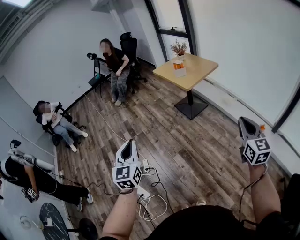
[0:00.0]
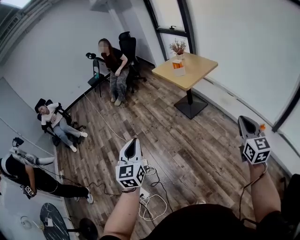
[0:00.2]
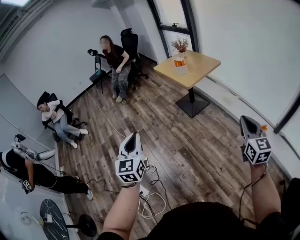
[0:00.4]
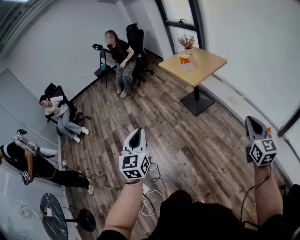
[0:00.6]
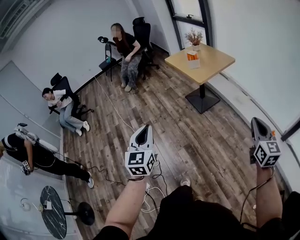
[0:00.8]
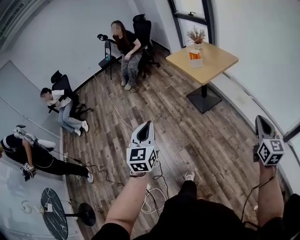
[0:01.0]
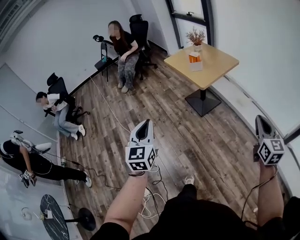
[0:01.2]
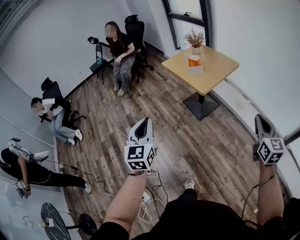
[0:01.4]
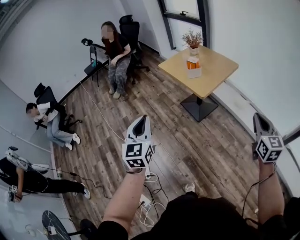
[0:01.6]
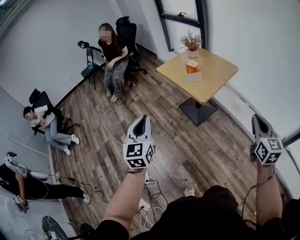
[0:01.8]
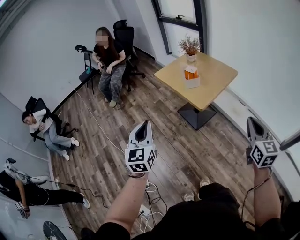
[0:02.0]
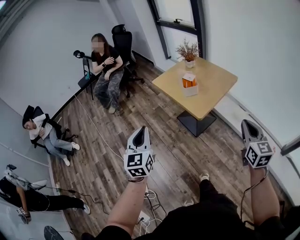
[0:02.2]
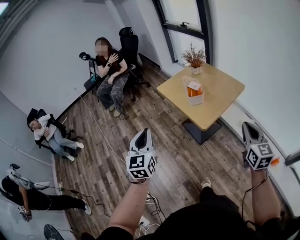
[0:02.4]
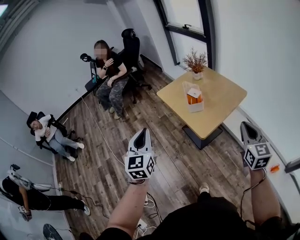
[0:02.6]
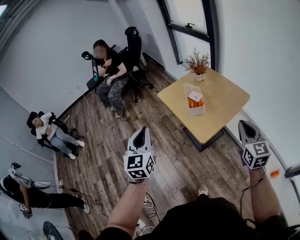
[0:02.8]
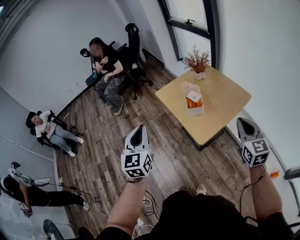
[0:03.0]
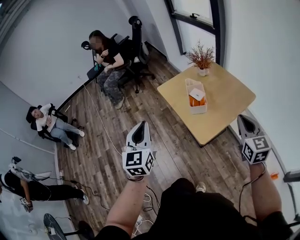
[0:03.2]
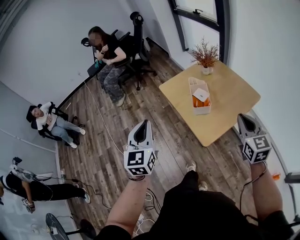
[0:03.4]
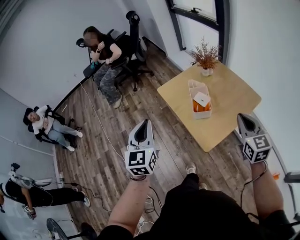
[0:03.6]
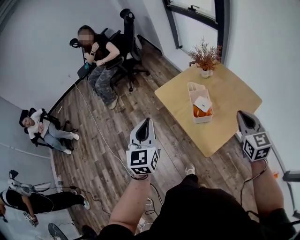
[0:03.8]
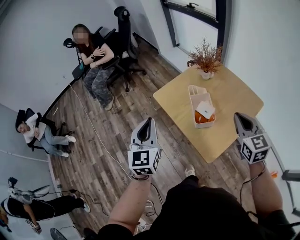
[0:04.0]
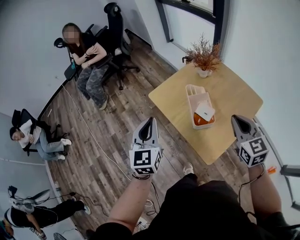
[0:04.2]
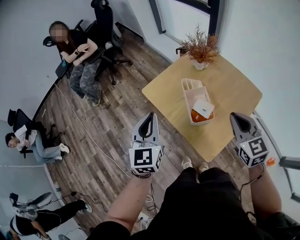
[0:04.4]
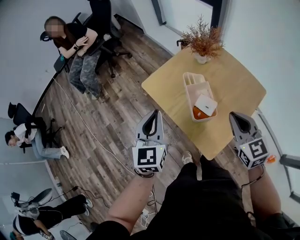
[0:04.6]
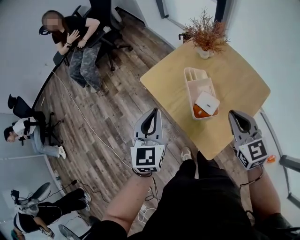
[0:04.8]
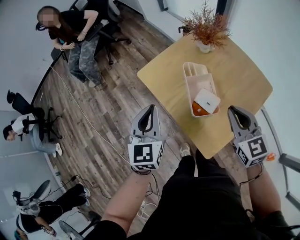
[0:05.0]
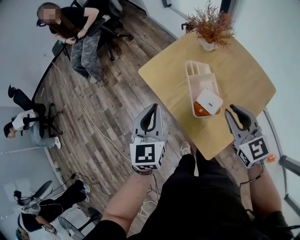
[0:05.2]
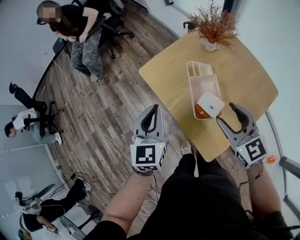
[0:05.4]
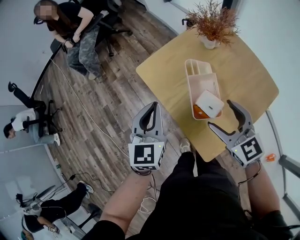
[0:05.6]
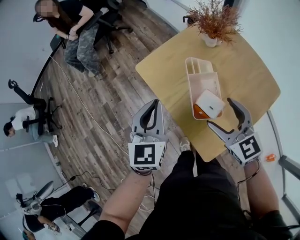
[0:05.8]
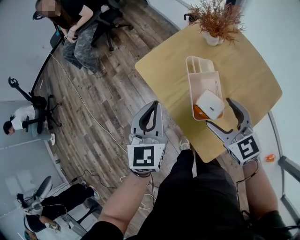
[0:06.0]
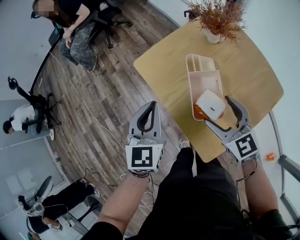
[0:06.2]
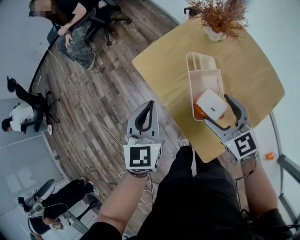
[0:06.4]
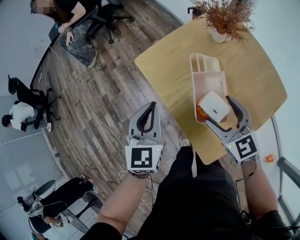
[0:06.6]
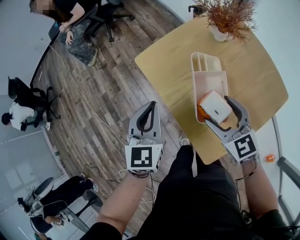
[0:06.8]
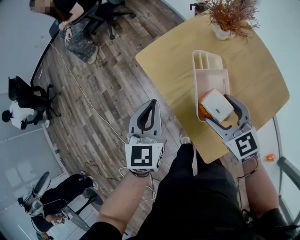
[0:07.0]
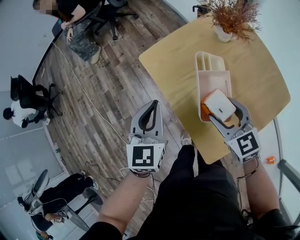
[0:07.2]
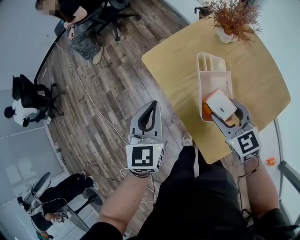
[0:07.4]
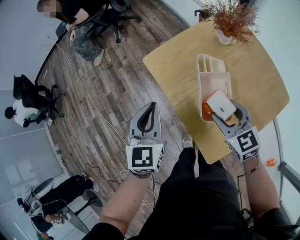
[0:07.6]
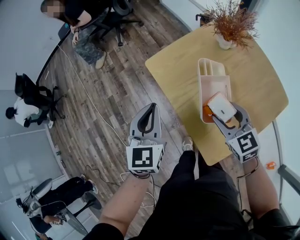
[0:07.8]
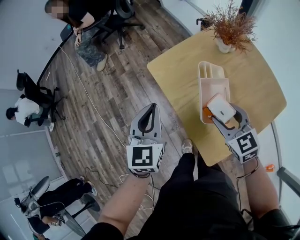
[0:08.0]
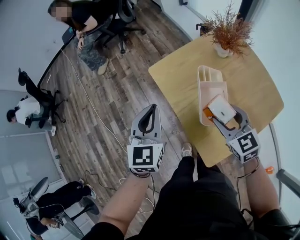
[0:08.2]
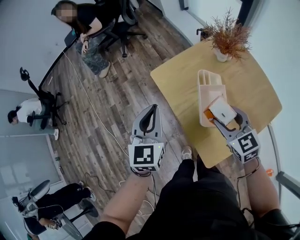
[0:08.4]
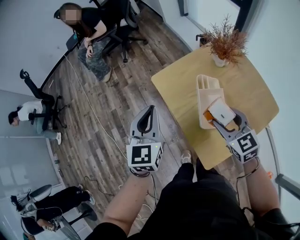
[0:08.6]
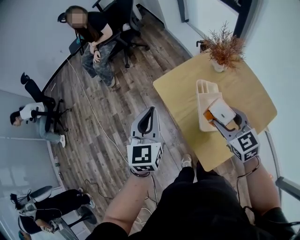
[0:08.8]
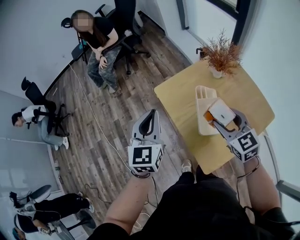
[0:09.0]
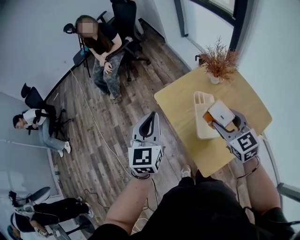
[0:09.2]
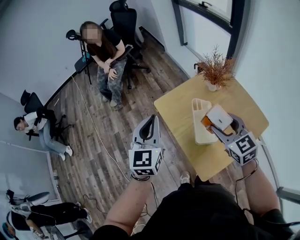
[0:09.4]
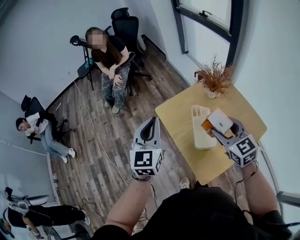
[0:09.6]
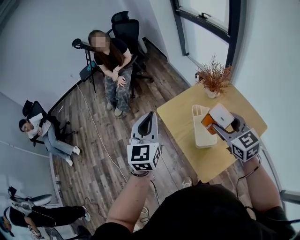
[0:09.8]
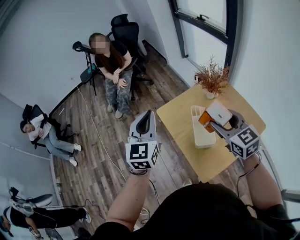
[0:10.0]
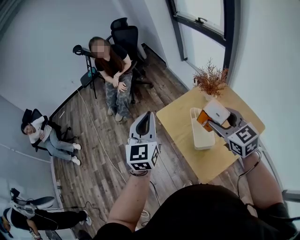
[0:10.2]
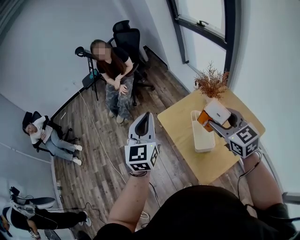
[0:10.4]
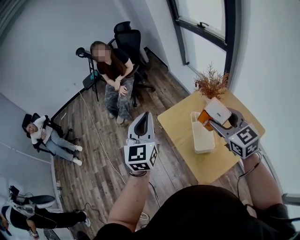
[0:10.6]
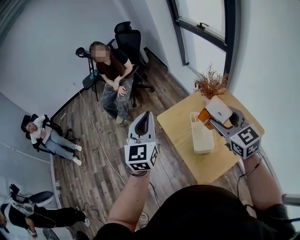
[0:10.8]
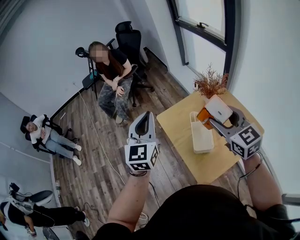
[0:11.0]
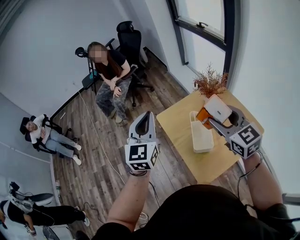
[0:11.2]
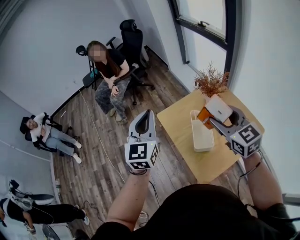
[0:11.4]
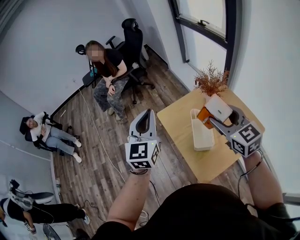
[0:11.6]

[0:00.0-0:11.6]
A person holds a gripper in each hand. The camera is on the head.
0:00.0 to 0:01.4: Both grippers travel together forward, about 30 cm.
0:01.4 to 0:02.8: The two grippers go about 35 cm forward.
0:02.8 to 0:04.4: The grippers both shift forward by some 30 cm.
0:04.4 to 0:05.8: The left gripper travels downward by some 10 cm, while the right gripper moves downward, forward and to the left, about 15 cm, swivels approximately 20 degrees, and opens up.
0:05.8 to 0:07.2: The right gripper is displaced downward by approximately 5 cm.
0:07.2 to 0:08.8: The grippers both shift upward by roughly 10 cm.
0:08.8 to 0:10.2: Both grippers travel together upward, about 15 cm.
0:10.2 to 0:11.6: The grippers stay close to where they were, moving slightly.

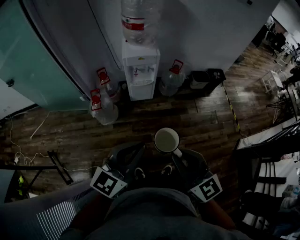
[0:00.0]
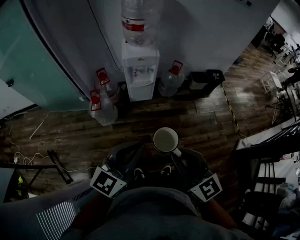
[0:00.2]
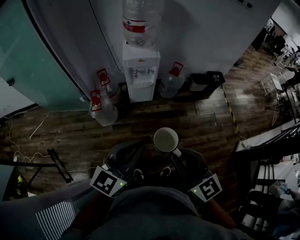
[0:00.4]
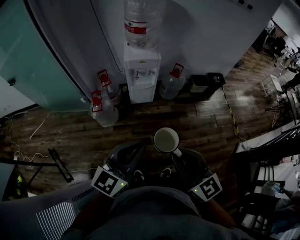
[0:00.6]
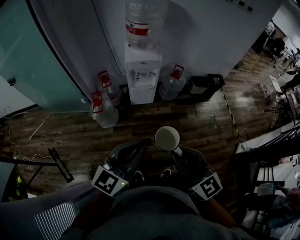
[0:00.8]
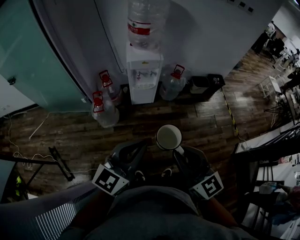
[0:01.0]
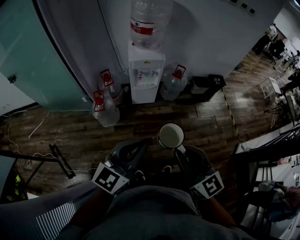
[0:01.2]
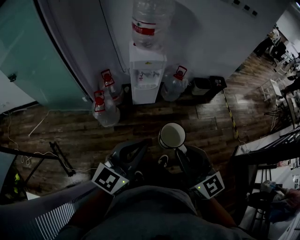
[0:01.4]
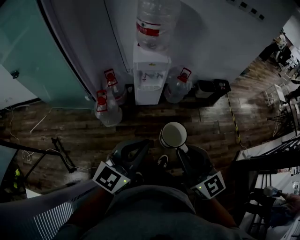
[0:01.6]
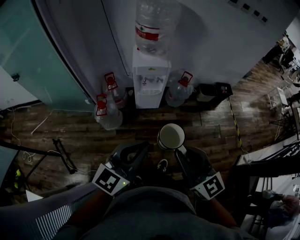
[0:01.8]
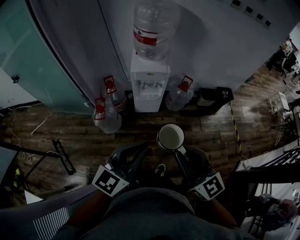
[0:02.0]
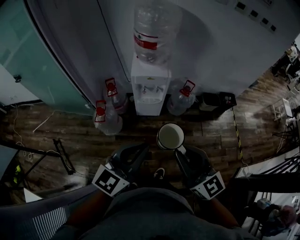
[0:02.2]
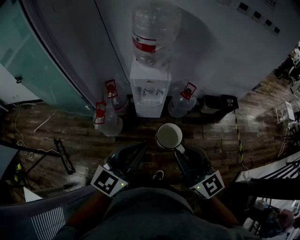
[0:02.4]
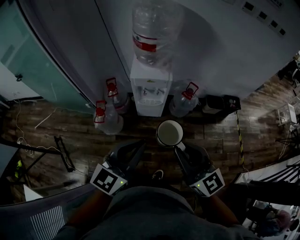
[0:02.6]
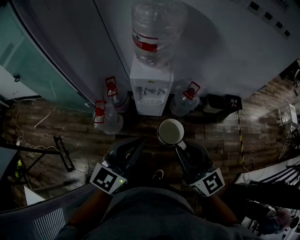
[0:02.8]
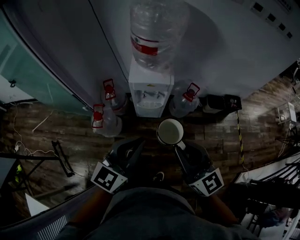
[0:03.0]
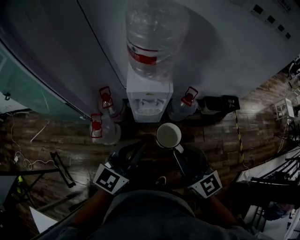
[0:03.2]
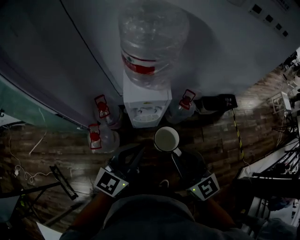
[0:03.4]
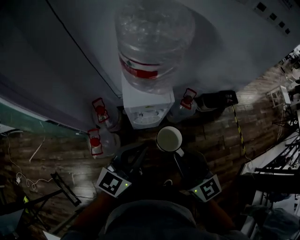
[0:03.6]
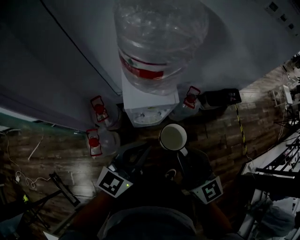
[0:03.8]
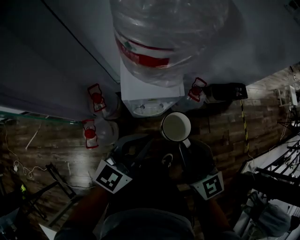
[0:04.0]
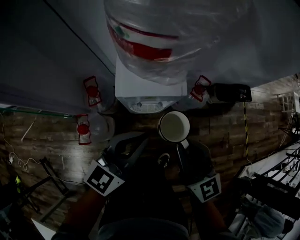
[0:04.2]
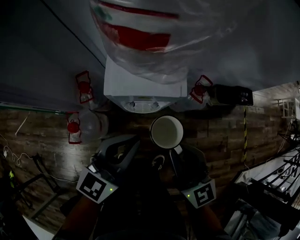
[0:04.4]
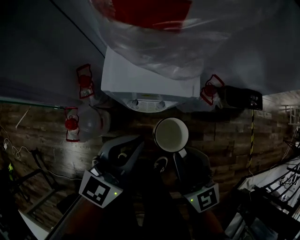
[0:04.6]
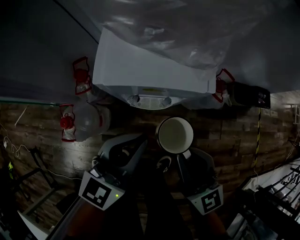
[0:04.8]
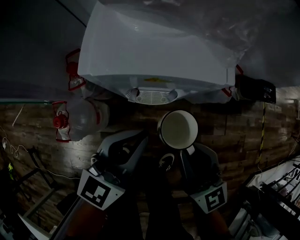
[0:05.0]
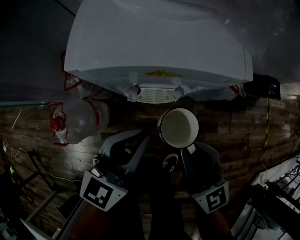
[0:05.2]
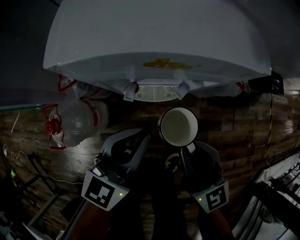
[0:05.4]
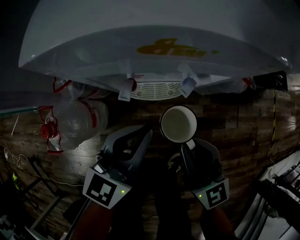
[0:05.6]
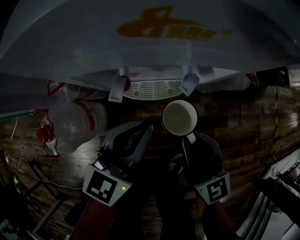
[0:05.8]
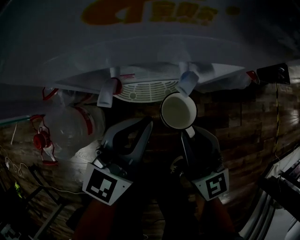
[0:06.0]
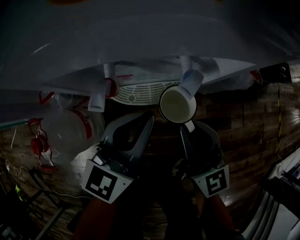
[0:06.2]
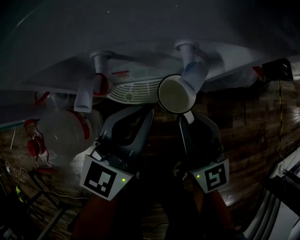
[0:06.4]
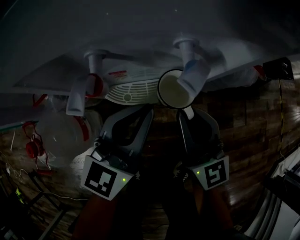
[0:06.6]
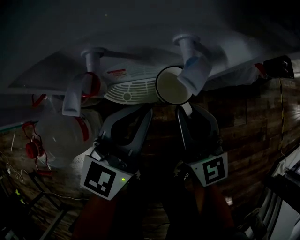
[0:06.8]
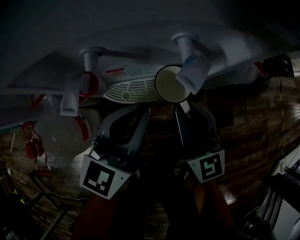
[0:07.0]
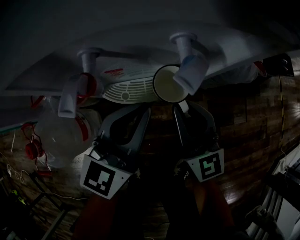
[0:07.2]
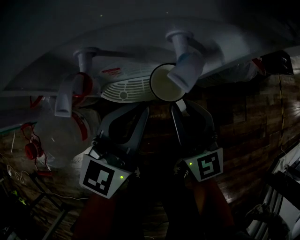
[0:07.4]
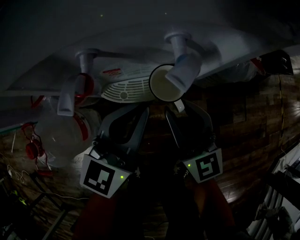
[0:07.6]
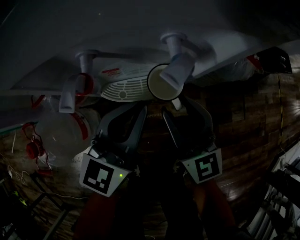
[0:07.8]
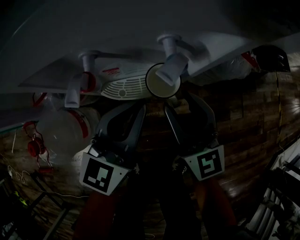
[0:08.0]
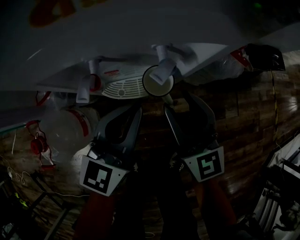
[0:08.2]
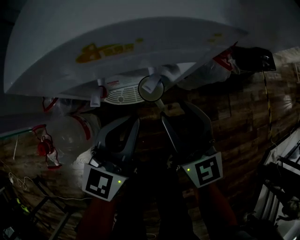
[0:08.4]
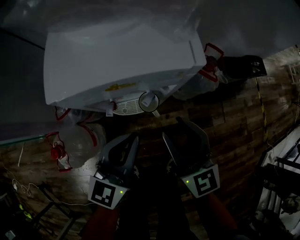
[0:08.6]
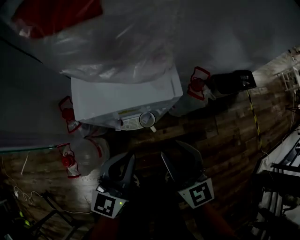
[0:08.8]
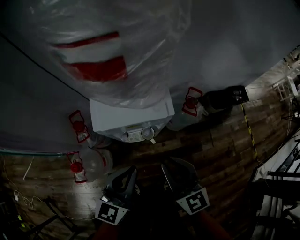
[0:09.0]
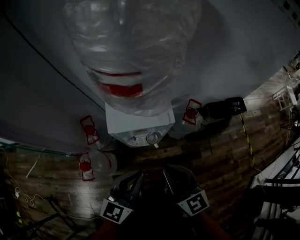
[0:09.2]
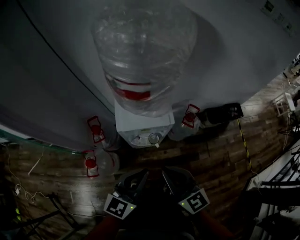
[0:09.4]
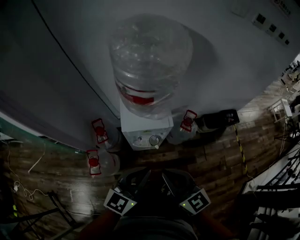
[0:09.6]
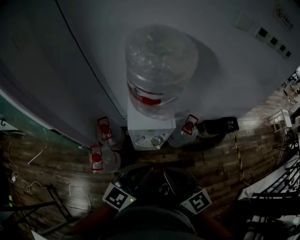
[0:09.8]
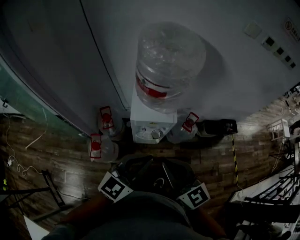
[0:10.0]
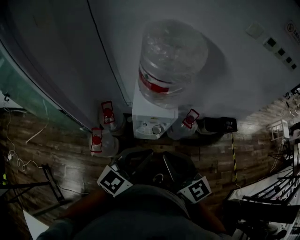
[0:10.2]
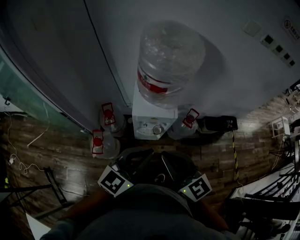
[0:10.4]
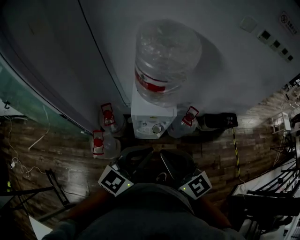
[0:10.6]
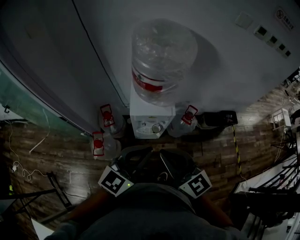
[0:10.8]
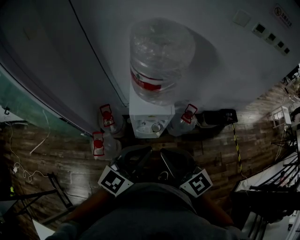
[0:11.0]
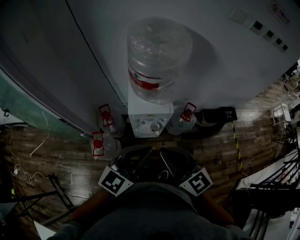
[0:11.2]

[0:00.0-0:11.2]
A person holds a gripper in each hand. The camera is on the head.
0:00.0 to 0:01.6: The left gripper changes place by some 5 cm. The right gripper moves forward, some 5 cm.
0:01.6 to 0:03.2: The grippers both shift forward by approximately 30 cm.
0:03.2 to 0:04.8: The grippers both shift downward and forward by about 35 cm.
0:04.8 to 0:06.4: Both grippers travel together downward, approximately 30 cm.
0:06.4 to 0:08.0: The right gripper opens.
0:08.0 to 0:09.6: The two grippers go some 50 cm upward. The right gripper closes its fingers.
0:09.6 to 0:11.2: Both grippers travel together upward, approximately 10 cm.

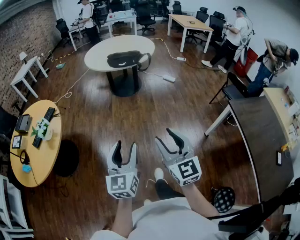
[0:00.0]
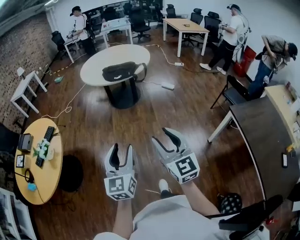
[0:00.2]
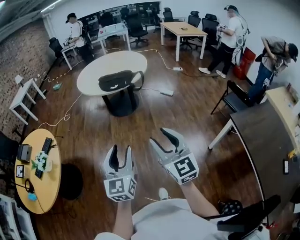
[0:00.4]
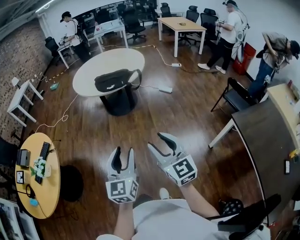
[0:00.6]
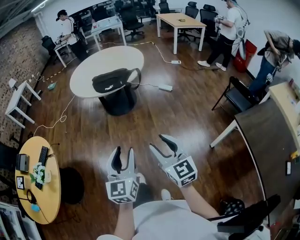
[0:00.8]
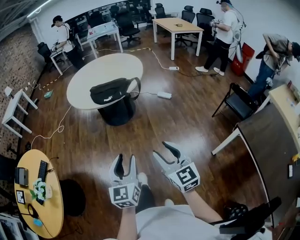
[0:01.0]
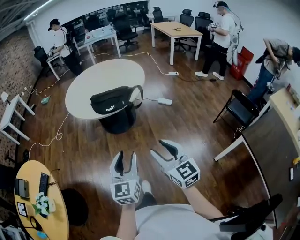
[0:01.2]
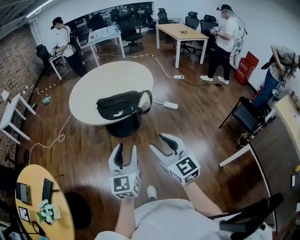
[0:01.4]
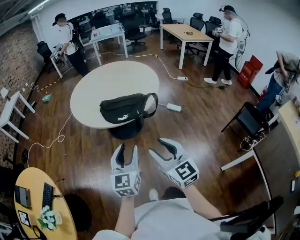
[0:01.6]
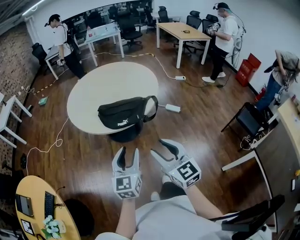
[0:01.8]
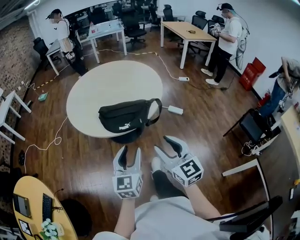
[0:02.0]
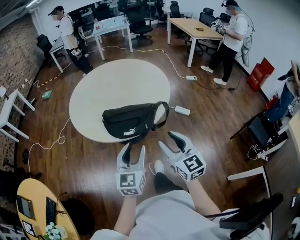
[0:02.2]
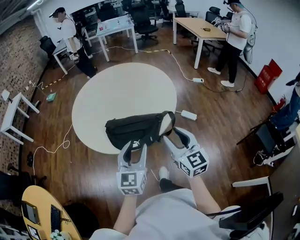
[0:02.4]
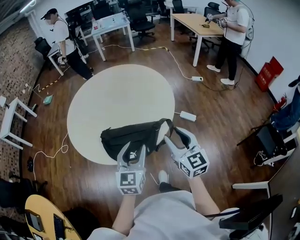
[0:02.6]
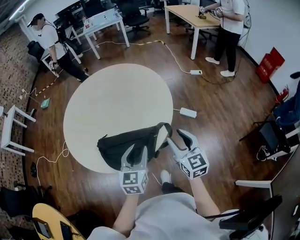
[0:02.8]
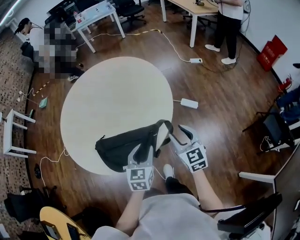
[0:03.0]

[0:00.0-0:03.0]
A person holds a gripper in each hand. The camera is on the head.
0:00.0 to 0:01.6: The pair of grippers is taken forward, some 60 cm.
0:01.6 to 0:03.0: Both grippers are carried forward, roughly 50 cm. The left gripper rotates roughly 30 degrees, while the right gripper changes its angle by some 20 degrees.
